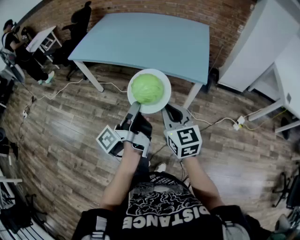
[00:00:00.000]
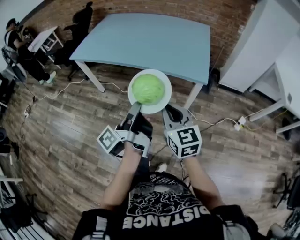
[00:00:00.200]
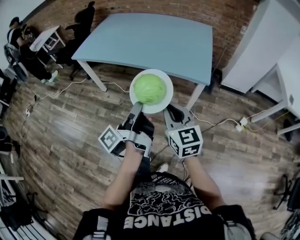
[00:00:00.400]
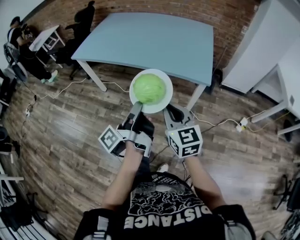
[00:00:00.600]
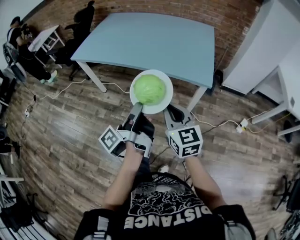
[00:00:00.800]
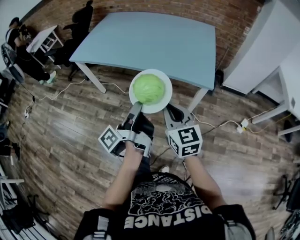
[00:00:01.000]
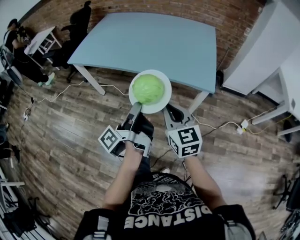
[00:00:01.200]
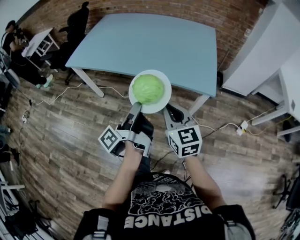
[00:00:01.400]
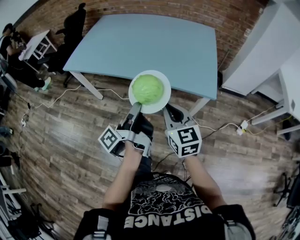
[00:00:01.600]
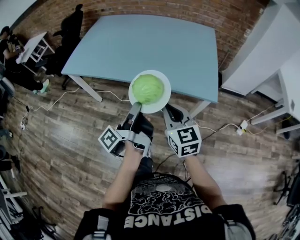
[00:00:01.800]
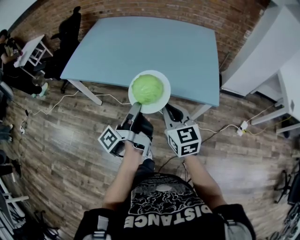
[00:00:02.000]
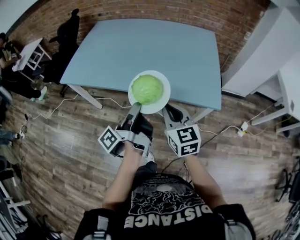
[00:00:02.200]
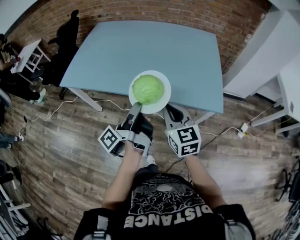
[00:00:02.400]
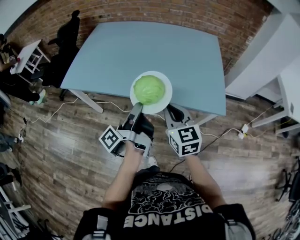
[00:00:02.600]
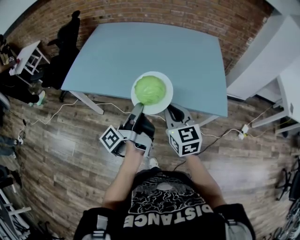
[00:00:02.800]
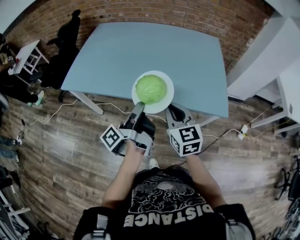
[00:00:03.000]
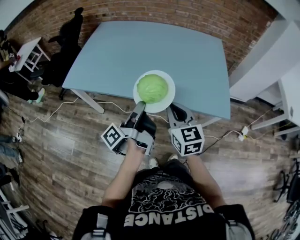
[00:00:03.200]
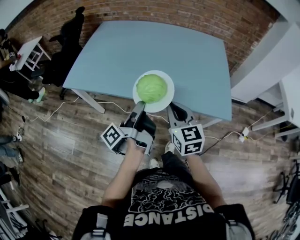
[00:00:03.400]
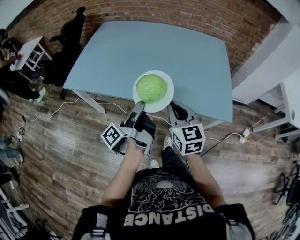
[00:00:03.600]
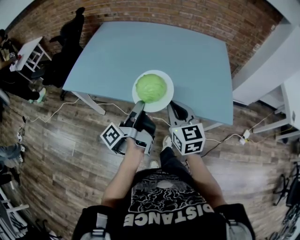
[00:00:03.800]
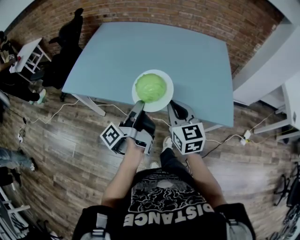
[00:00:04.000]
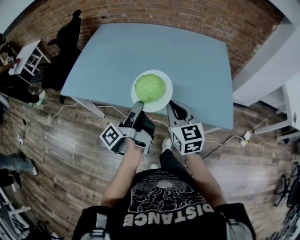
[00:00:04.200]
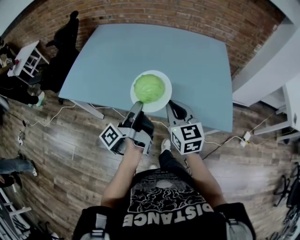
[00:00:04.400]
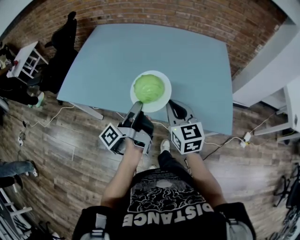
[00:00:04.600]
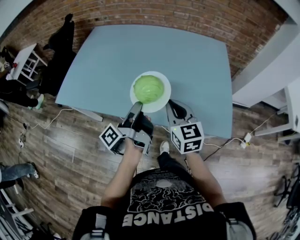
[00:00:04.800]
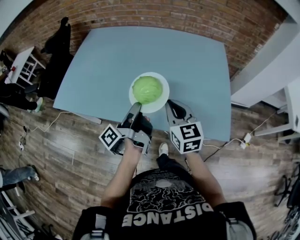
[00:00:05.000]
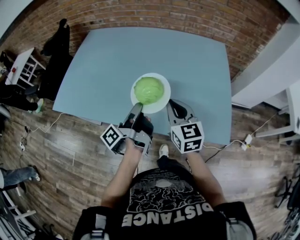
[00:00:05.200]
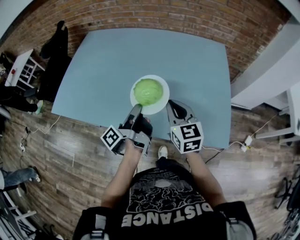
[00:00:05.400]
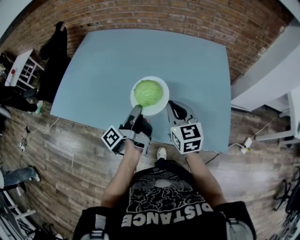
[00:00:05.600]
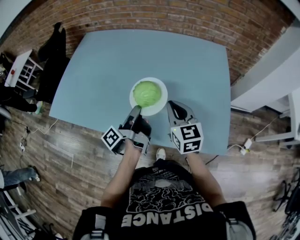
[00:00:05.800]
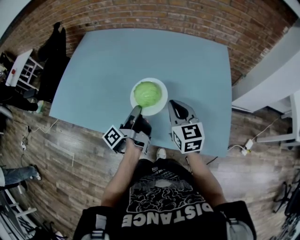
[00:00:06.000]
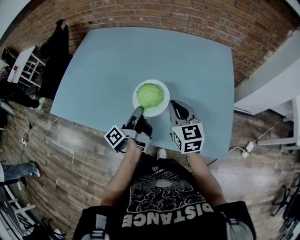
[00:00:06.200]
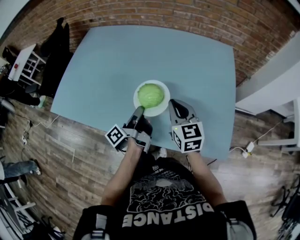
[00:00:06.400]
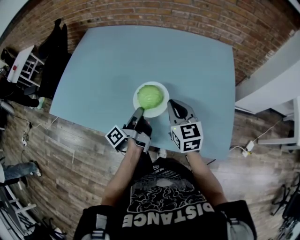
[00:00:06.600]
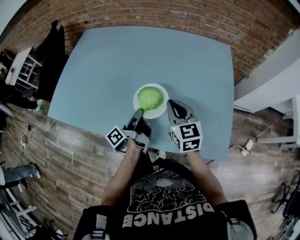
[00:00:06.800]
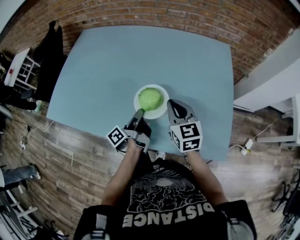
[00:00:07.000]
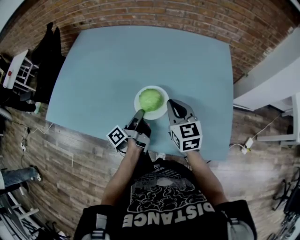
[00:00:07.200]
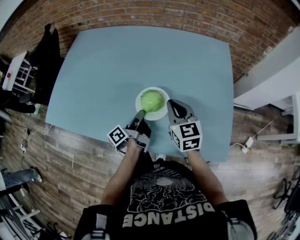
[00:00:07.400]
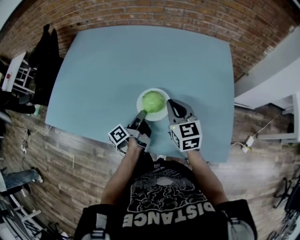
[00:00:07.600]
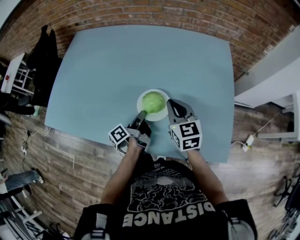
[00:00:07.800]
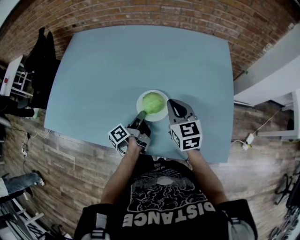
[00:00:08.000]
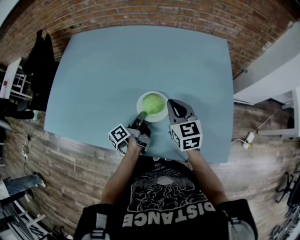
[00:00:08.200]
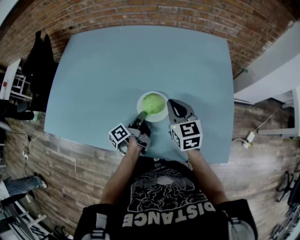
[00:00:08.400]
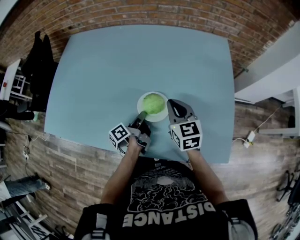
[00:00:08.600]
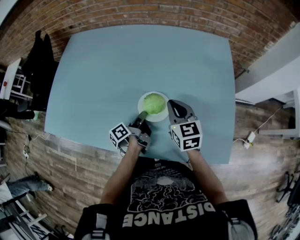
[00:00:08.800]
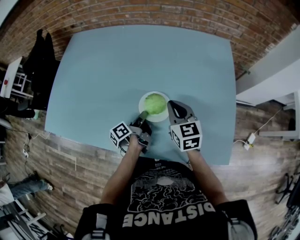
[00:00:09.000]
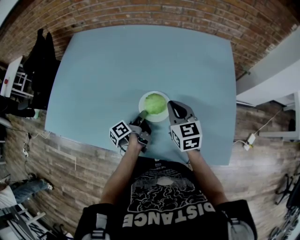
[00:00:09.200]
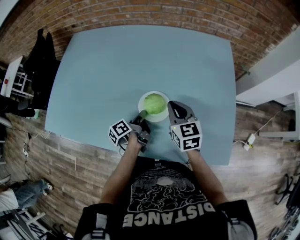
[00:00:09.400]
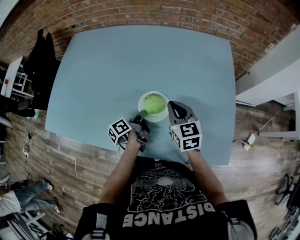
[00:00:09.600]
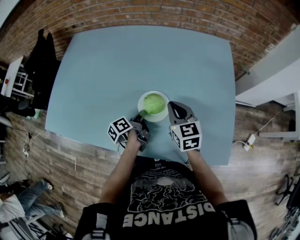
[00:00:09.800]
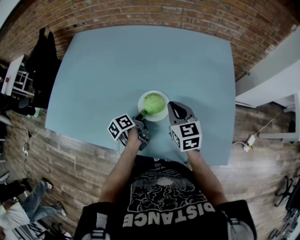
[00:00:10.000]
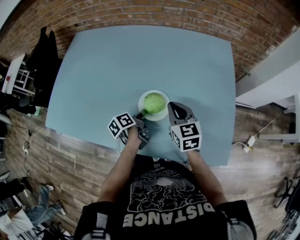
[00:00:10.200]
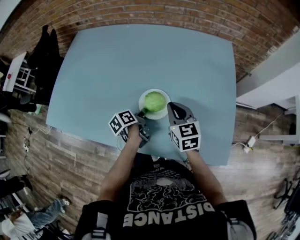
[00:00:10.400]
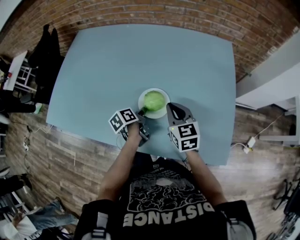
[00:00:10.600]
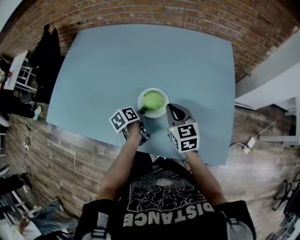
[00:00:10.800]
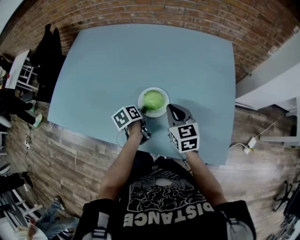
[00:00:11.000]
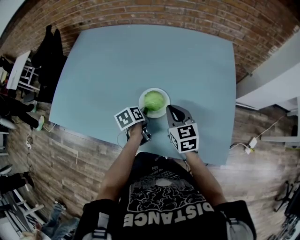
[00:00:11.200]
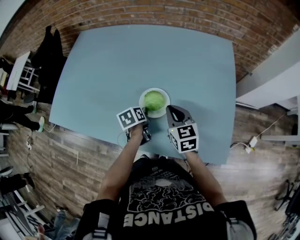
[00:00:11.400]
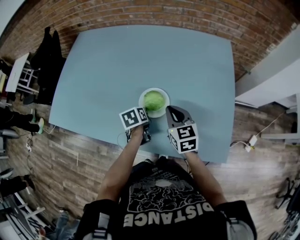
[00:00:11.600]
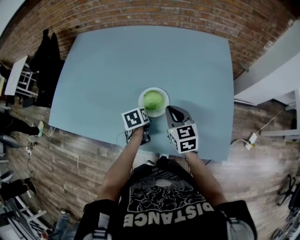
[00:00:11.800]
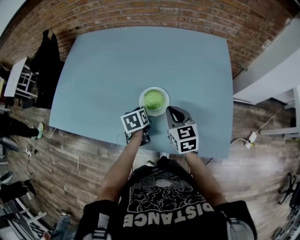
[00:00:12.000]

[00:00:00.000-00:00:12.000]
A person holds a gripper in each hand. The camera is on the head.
00:00:00.000 to 00:00:01.600: The right gripper moves about 15 cm.
00:00:01.600 to 00:00:03.000: The right gripper ends up roughly 15 cm from where it was.
00:00:03.000 to 00:00:04.400: The right gripper shifts by some 10 cm.
00:00:04.400 to 00:00:06.000: The right gripper changes place by approximately 20 cm.
00:00:06.000 to 00:00:07.600: The right gripper changes place by some 5 cm.

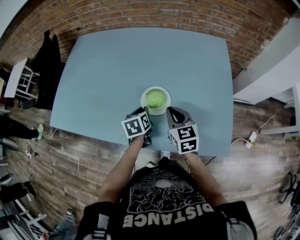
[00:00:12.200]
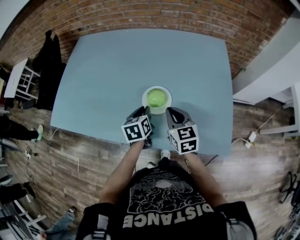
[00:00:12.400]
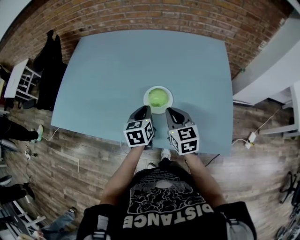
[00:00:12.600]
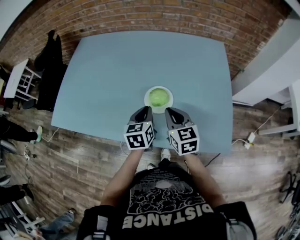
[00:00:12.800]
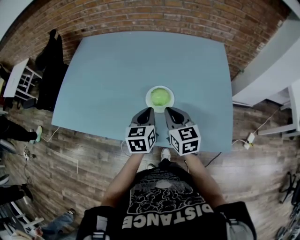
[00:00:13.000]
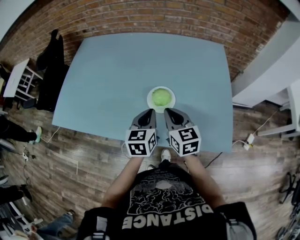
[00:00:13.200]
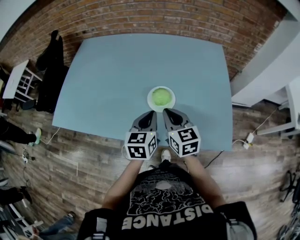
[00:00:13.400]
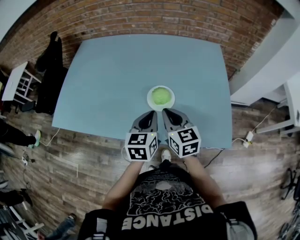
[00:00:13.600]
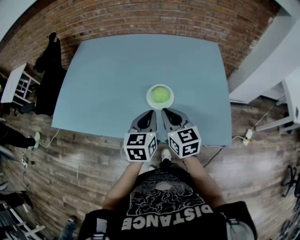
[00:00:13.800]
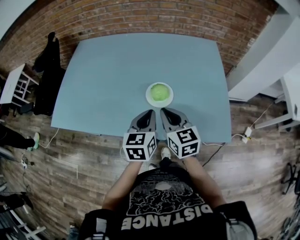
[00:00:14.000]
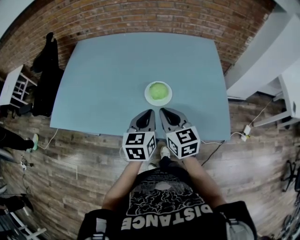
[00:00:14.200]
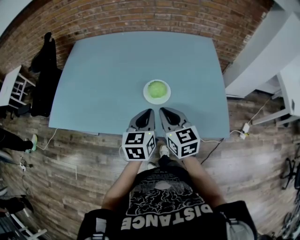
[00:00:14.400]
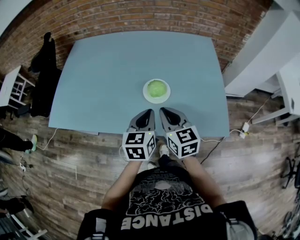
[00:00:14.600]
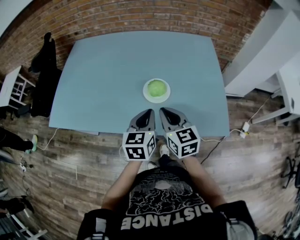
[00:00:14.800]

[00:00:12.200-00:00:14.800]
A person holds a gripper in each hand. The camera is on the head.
00:00:12.200 to 00:00:13.400: The right gripper changes place by approximately 10 cm.
00:00:13.400 to 00:00:14.800: The right gripper ends up roughly 5 cm from where it was.

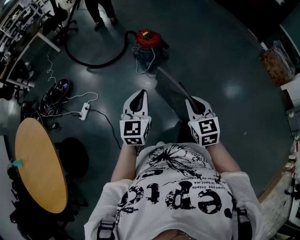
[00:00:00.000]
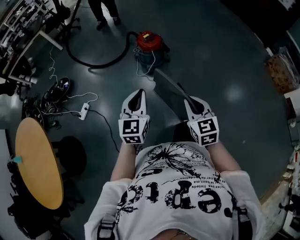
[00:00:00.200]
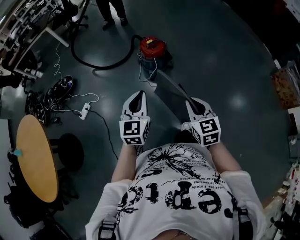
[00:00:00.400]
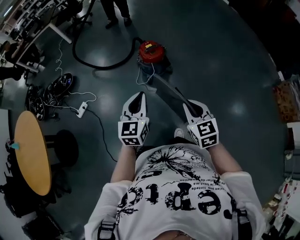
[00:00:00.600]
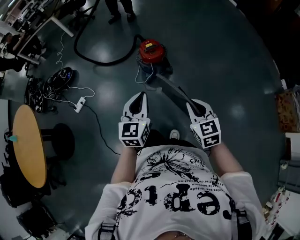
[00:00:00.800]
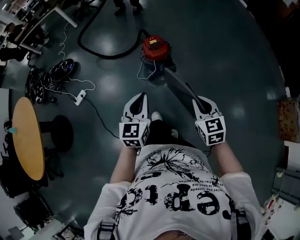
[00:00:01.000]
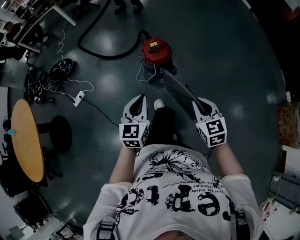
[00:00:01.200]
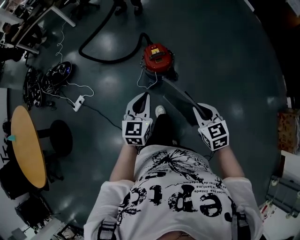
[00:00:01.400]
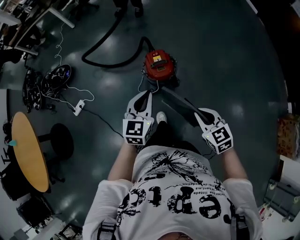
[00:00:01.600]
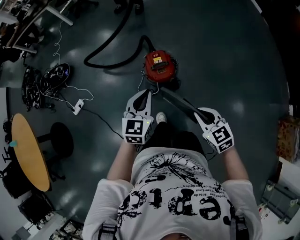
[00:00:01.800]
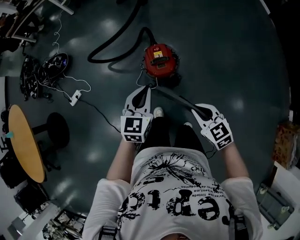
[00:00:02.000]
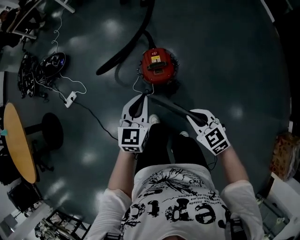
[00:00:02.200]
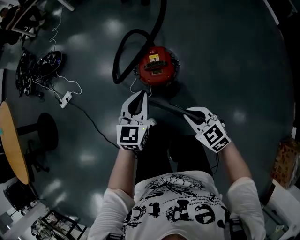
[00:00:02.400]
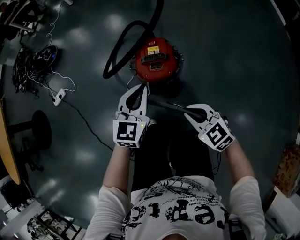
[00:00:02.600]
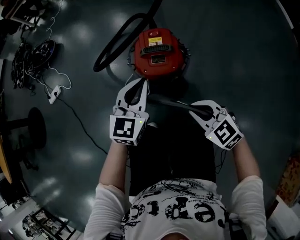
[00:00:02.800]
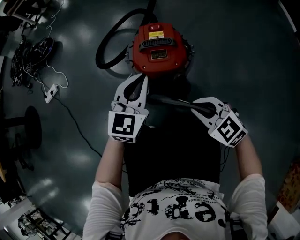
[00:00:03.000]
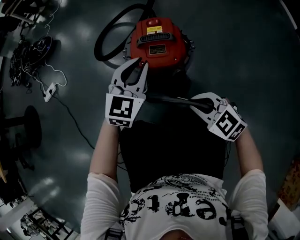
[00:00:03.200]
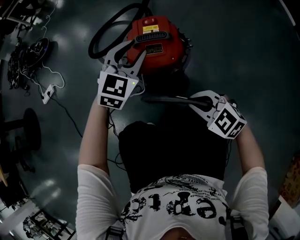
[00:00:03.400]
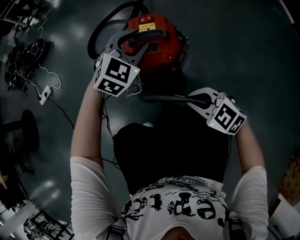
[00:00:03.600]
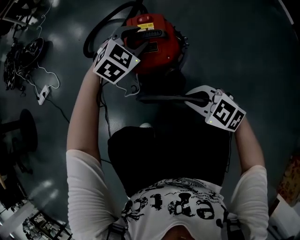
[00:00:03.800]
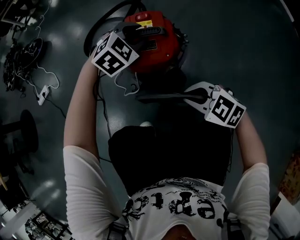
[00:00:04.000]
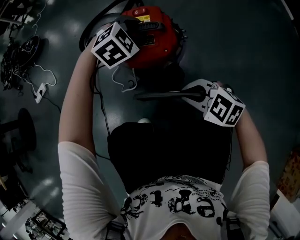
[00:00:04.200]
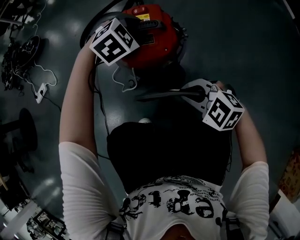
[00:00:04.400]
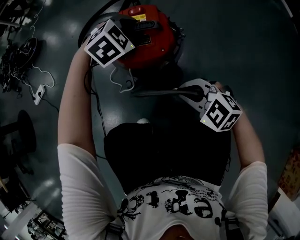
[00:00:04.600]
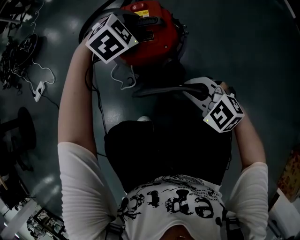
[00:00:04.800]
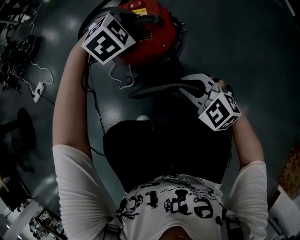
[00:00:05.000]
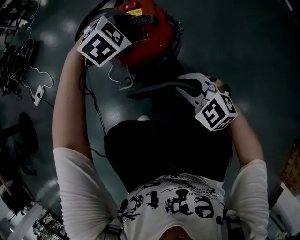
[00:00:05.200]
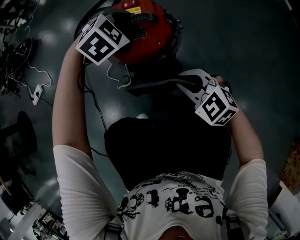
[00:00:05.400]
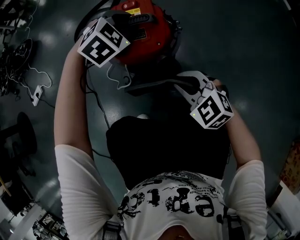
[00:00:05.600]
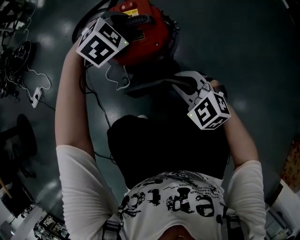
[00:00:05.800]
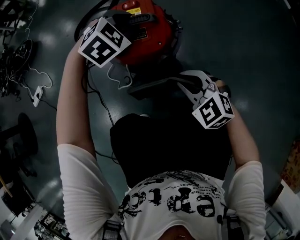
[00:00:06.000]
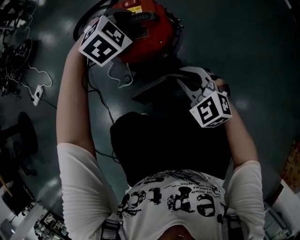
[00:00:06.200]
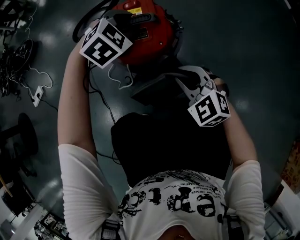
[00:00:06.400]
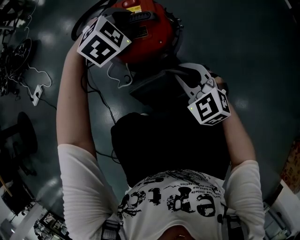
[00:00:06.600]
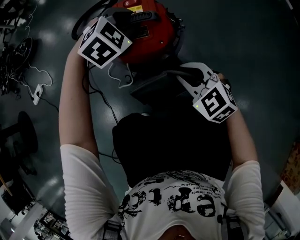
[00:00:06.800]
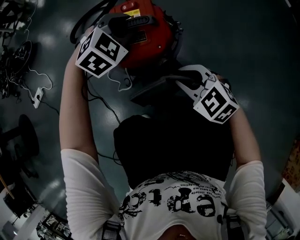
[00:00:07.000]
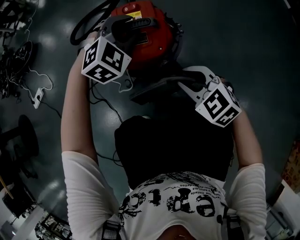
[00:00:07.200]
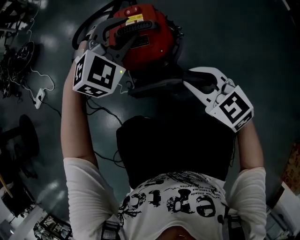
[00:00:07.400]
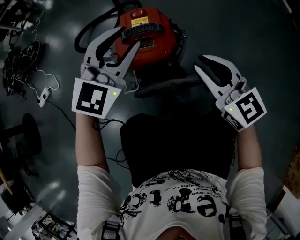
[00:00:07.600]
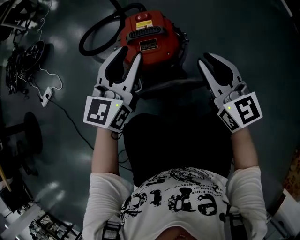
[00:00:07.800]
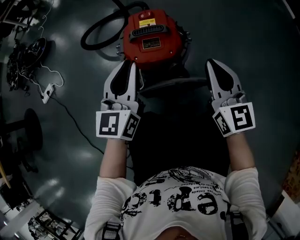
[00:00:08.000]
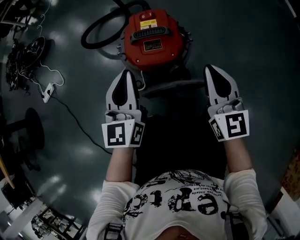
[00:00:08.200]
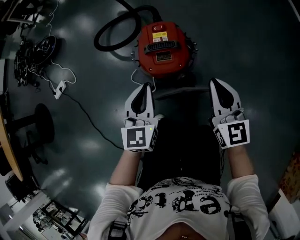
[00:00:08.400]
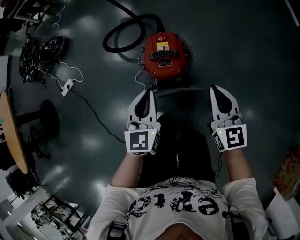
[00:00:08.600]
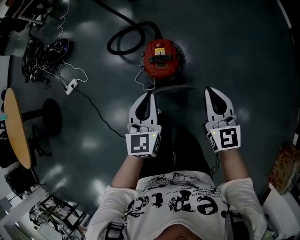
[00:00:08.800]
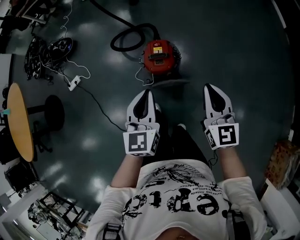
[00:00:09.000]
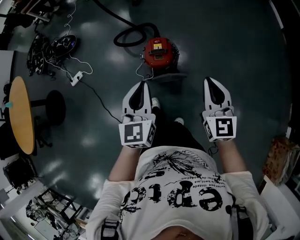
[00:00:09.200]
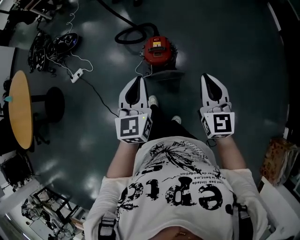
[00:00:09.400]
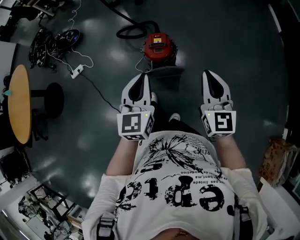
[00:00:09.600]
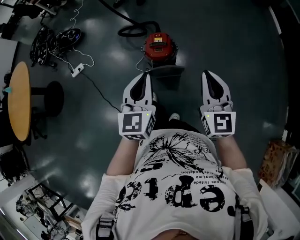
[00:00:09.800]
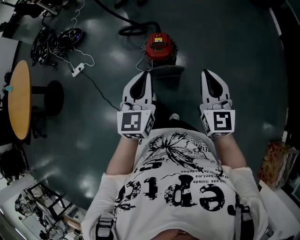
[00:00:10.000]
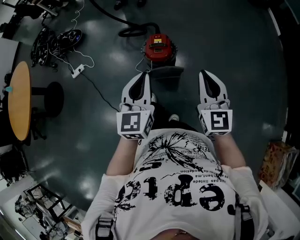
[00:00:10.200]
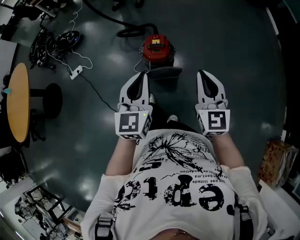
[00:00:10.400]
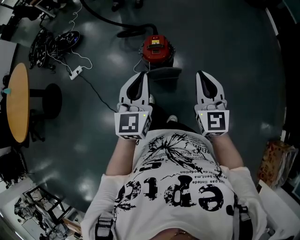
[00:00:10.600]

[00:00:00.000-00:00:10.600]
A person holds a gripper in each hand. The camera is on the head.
00:00:00.000 to 00:00:01.600: The two grippers travel together, approximately 50 cm. The right gripper changes its angle by approximately 40 degrees.
00:00:01.600 to 00:00:03.000: Both grippers move downward, some 40 cm. The right gripper rotates about 40 degrees.
00:00:03.000 to 00:00:04.600: The right gripper goes roughly 5 cm downward, while the left gripper shifts about 15 cm forward, downward and to the right, angles its fingers downward, by about 40 degrees, and opens its fingers.
00:00:04.600 to 00:00:06.000: The grippers move only a little.
00:00:06.000 to 00:00:07.600: The right gripper goes roughly 15 cm upward, and rotates roughly 40 degrees, while the left gripper travels upward and backward by roughly 15 cm, and points its fingers some 40 degrees further upward.
00:00:07.600 to 00:00:09.000: The left gripper heads upward and backward, covering about 40 cm, swivels some 50 degrees, and closes. Meanwhile the right gripper travels upward by roughly 40 cm, and swivels approximately 20 degrees.
00:00:09.000 to 00:00:10.600: The grippers both shift backward and upward by about 15 cm.
